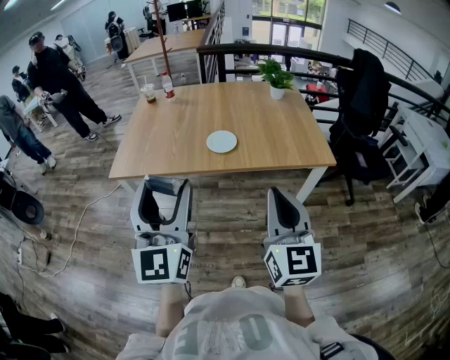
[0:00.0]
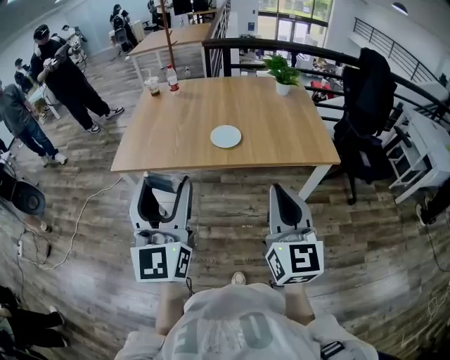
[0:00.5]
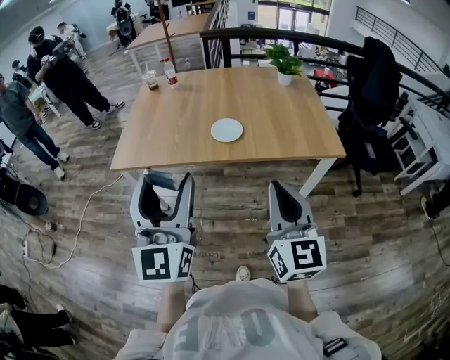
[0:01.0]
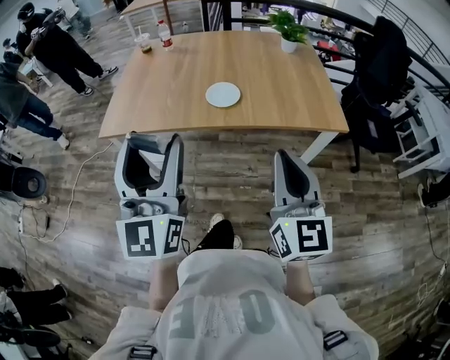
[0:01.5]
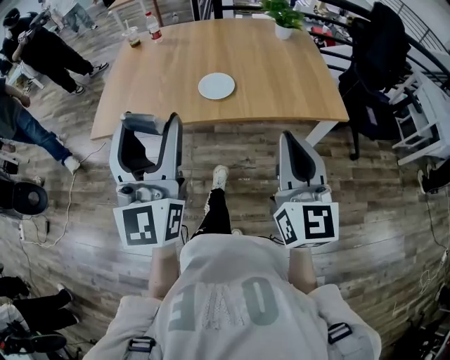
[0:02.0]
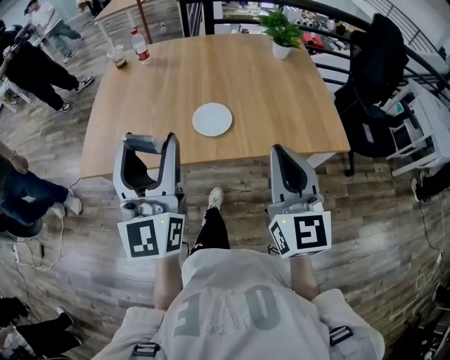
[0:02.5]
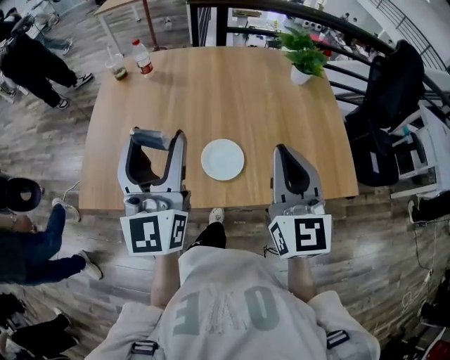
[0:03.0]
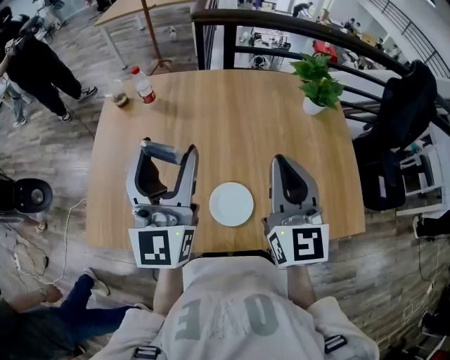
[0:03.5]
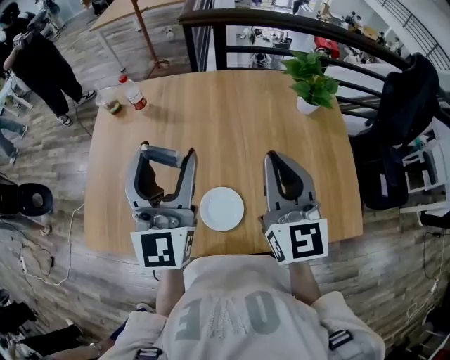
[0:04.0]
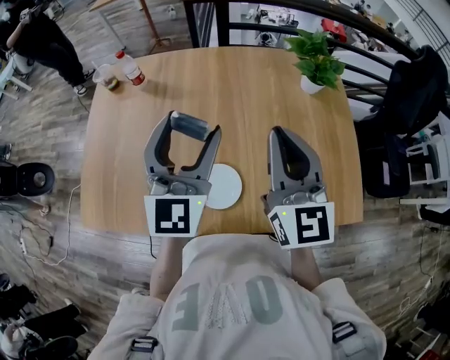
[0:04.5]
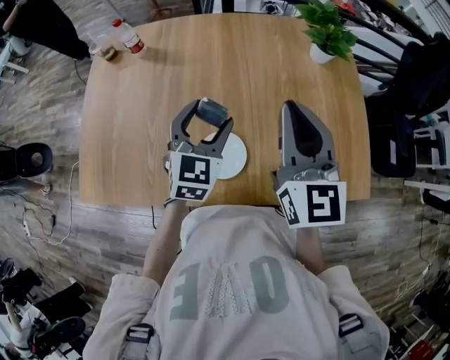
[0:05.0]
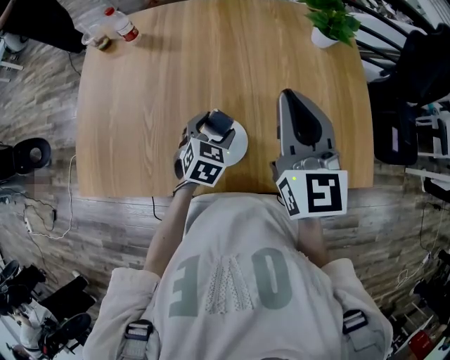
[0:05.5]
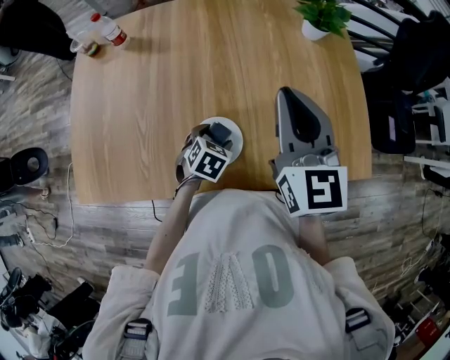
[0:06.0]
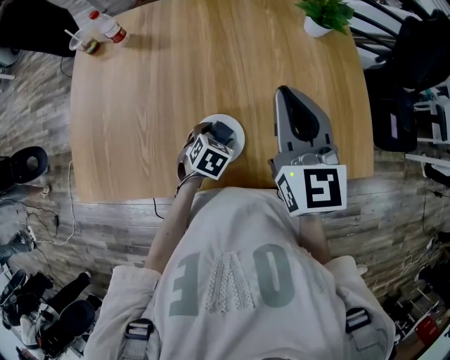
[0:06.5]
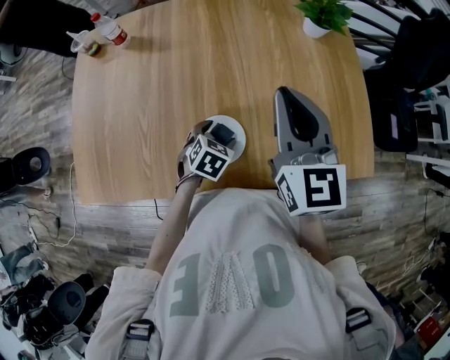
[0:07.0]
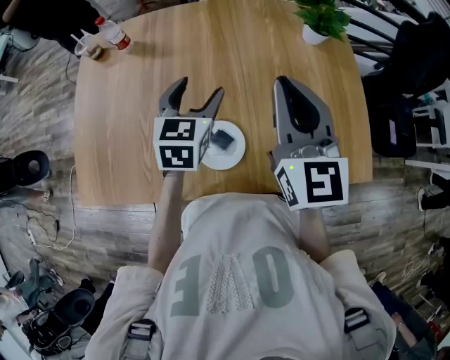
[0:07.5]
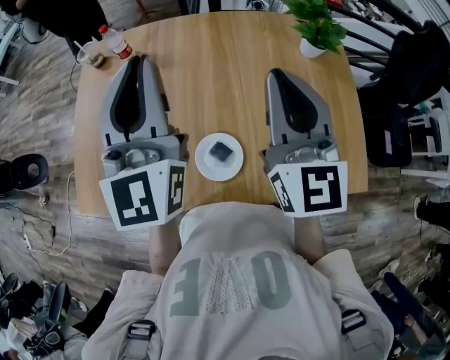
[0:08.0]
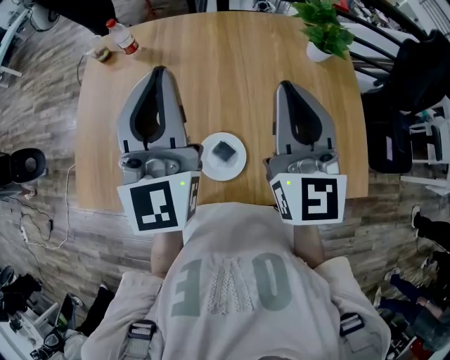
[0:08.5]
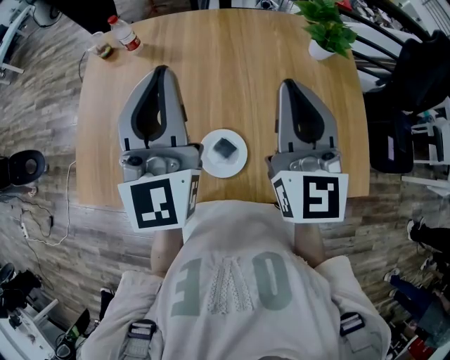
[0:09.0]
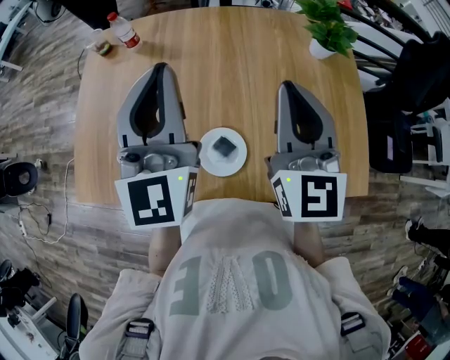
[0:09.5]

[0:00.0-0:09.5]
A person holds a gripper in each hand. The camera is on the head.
0:00.0 to 0:02.0: Both grippers travel together forward, some 5 cm.
0:02.0 to 0:04.0: Both grippers are carried forward, about 50 cm.
0:04.0 to 0:05.5: The left gripper is displaced downward by roughly 30 cm, and tips its fingers downward by some 60 degrees.
0:05.5 to 0:07.5: The left gripper travels upward and forward by some 15 cm, and rotates about 20 degrees.
0:07.5 to 0:09.5: The left gripper is displaced upward by approximately 20 cm, points its fingers about 40 degrees further upward, and closes.

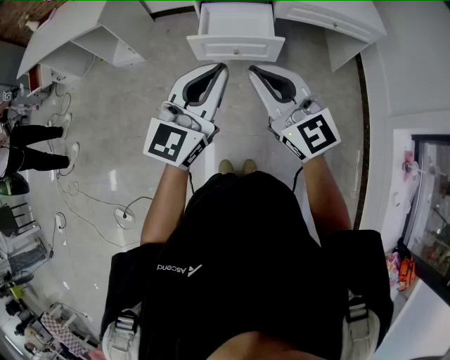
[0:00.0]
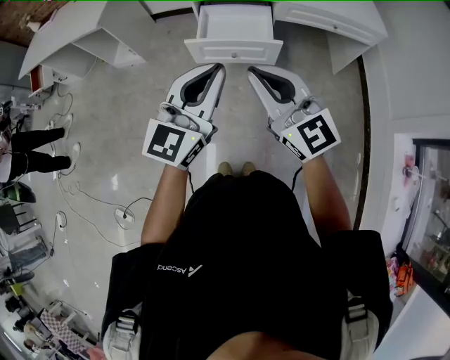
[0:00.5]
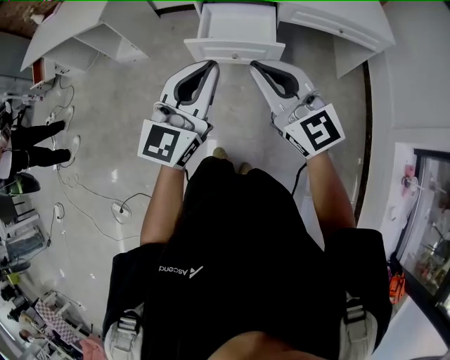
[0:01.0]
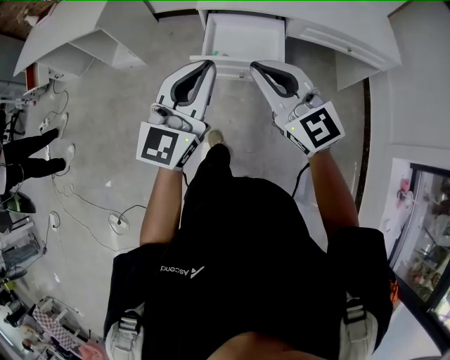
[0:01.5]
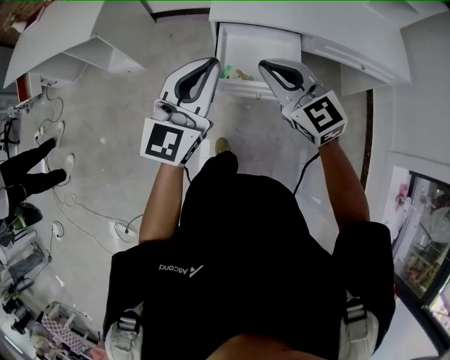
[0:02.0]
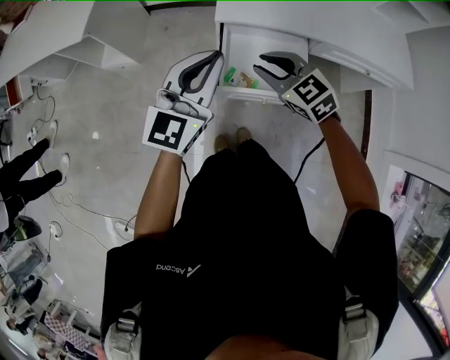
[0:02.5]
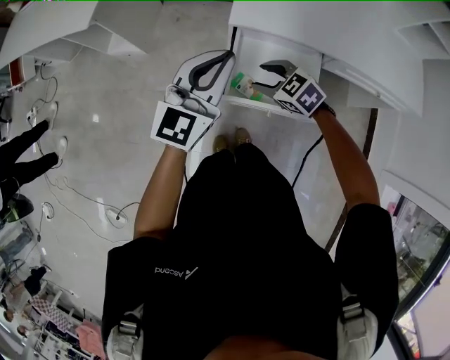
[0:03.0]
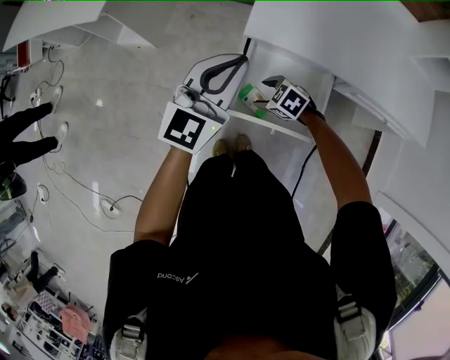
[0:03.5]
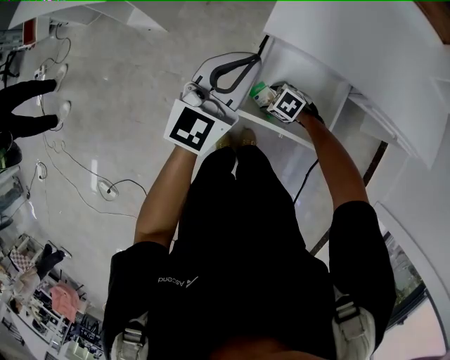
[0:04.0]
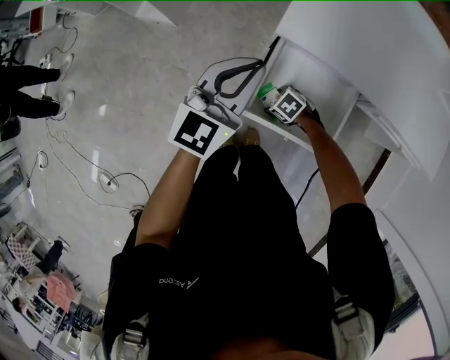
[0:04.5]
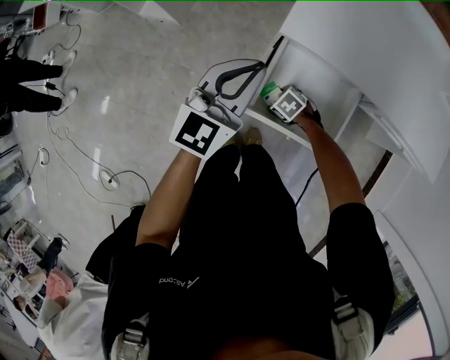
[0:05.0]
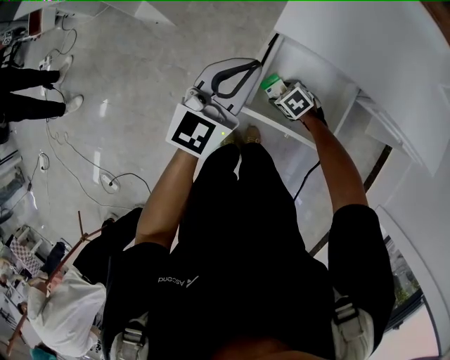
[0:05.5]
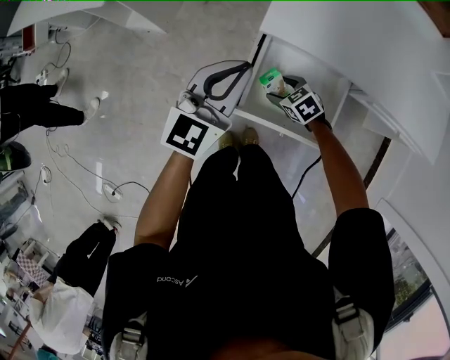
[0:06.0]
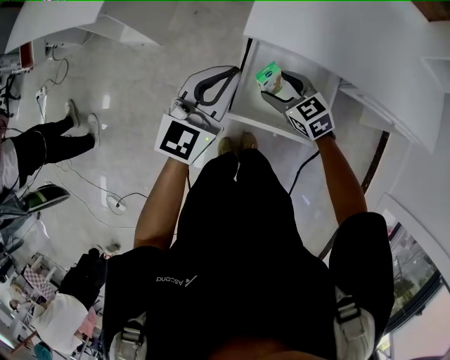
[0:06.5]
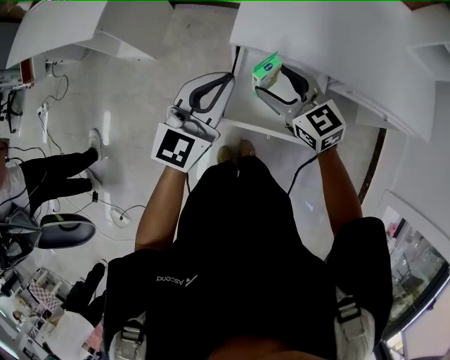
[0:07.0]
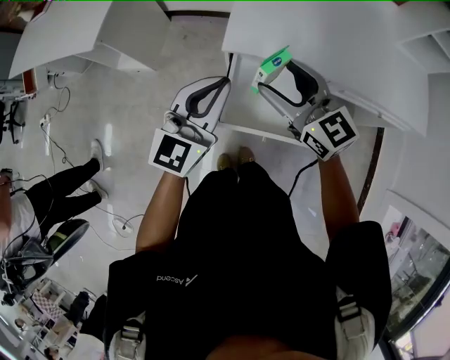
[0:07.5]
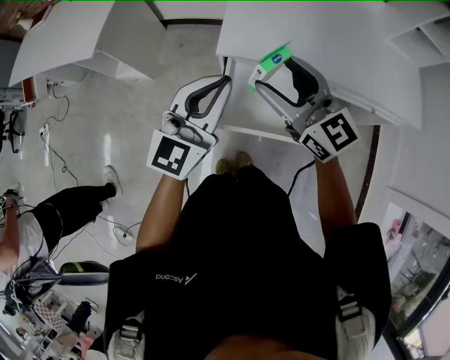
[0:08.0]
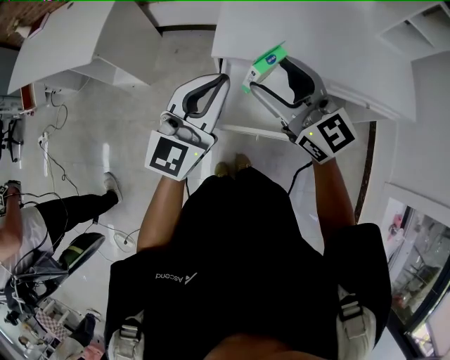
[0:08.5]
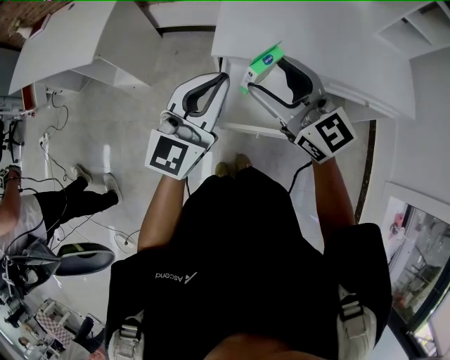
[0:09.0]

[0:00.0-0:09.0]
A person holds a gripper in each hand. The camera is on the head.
0:00.0 to 0:02.0: The grippers both shift forward by some 30 cm.
0:02.0 to 0:04.5: The left gripper shifts by some 25 cm. Meanwhile the right gripper moves downward, about 40 cm, angles its fingers downward, by roughly 60 degrees, and opens.
0:04.5 to 0:07.0: The right gripper heads upward, covering roughly 35 cm, and tilts its fingers about 50 degrees upward, while the left gripper ends up some 5 cm from where it was.
0:07.0 to 0:09.0: The left gripper moves upward, some 10 cm. Meanwhile the right gripper is displaced upward by roughly 15 cm, and changes its angle by some 20 degrees.

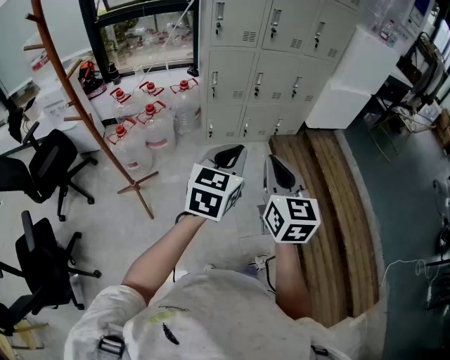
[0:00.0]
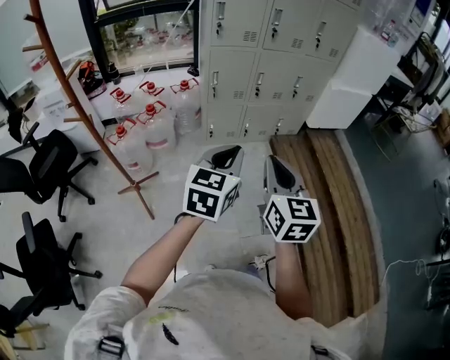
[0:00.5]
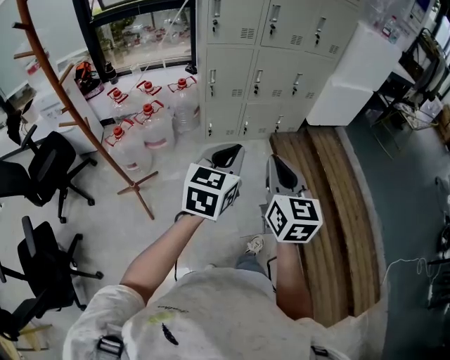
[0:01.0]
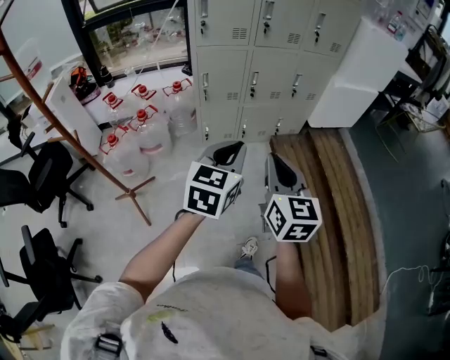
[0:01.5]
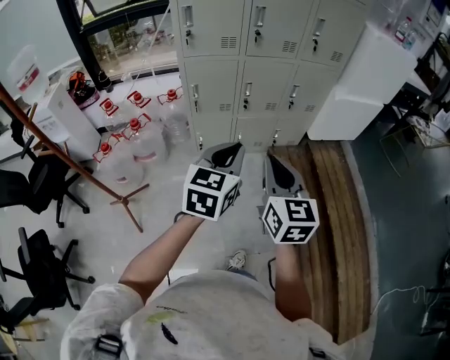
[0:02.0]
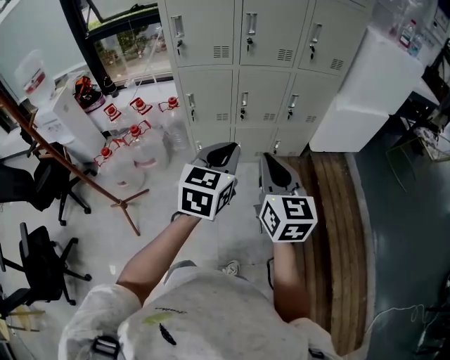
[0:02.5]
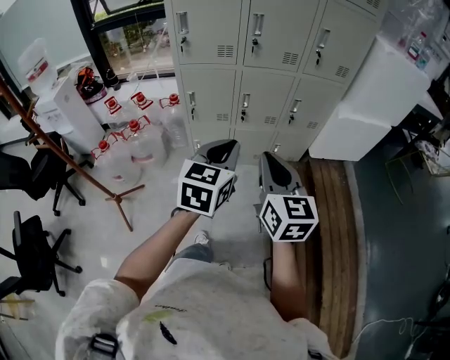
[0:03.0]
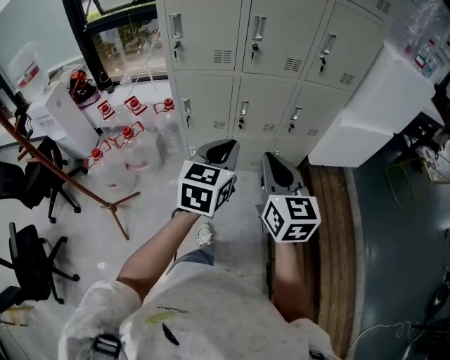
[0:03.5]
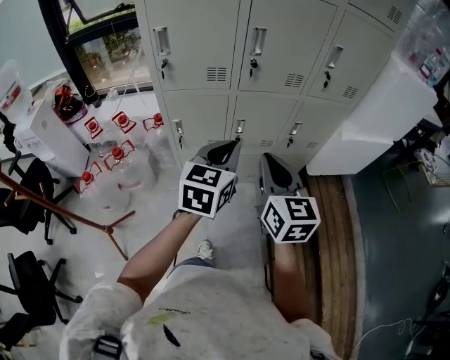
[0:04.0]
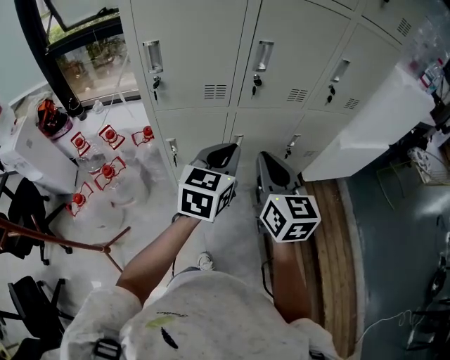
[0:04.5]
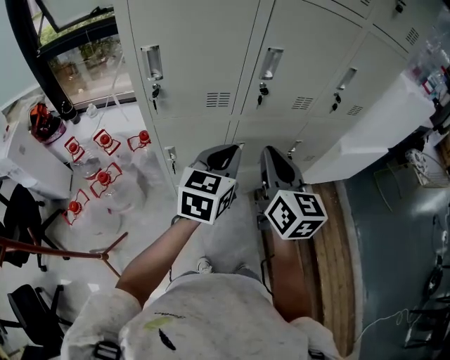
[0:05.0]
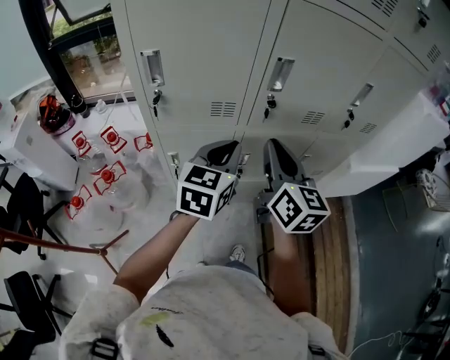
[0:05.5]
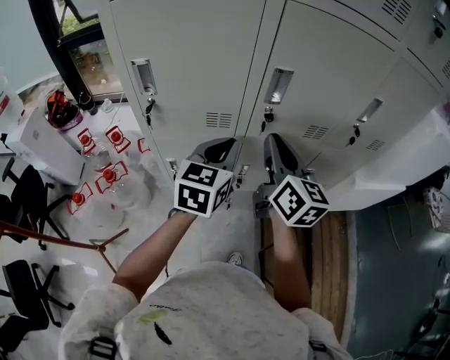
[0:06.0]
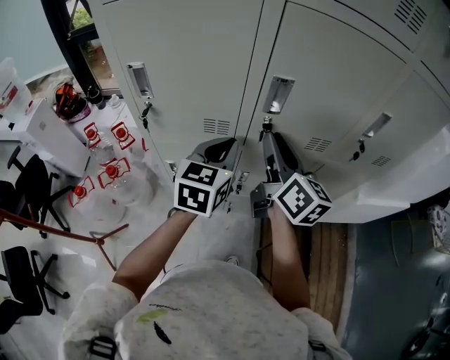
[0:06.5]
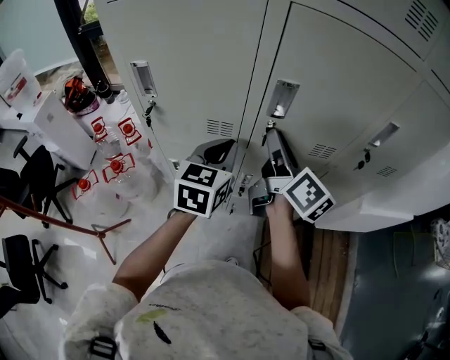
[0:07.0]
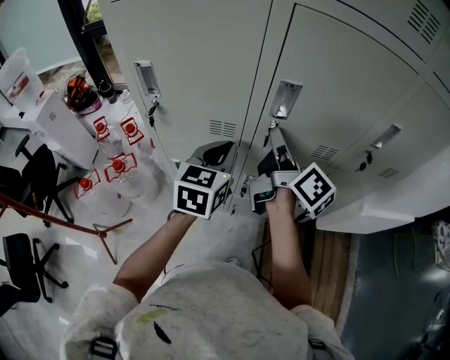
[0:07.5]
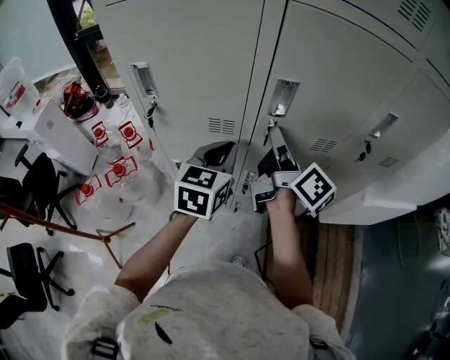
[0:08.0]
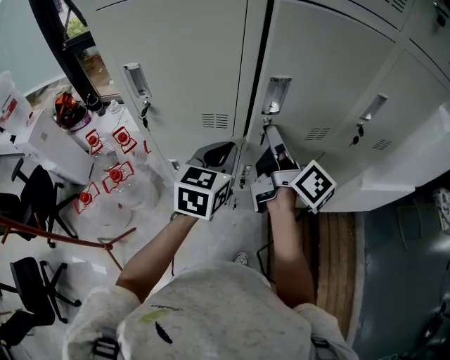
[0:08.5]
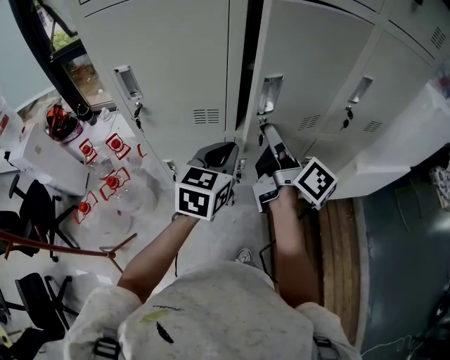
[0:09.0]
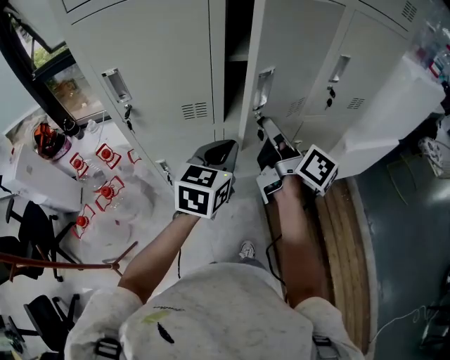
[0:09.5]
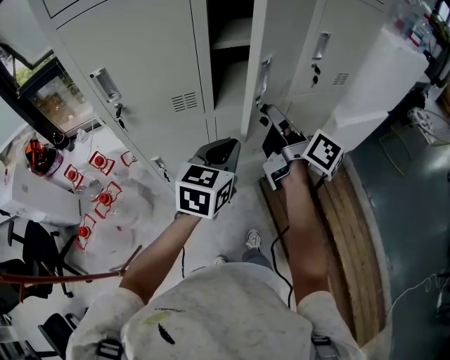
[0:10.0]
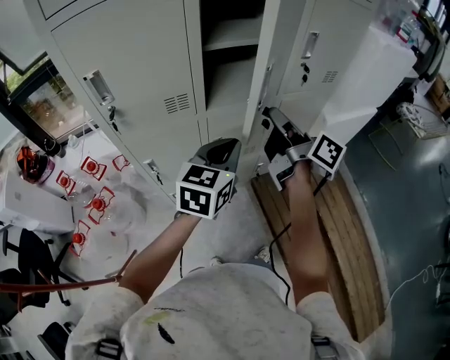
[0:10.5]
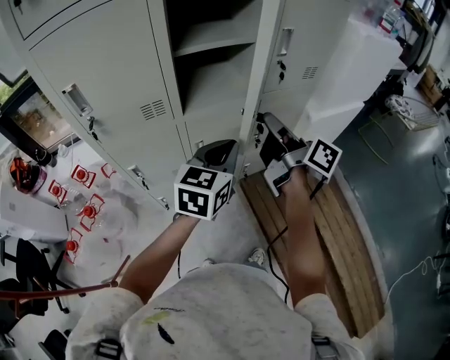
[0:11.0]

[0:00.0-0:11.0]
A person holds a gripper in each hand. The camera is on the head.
0:00.0 to 0:02.0: The grippers both shift forward and to the right by some 25 cm.
0:02.0 to 0:03.5: The grippers both shift forward by approximately 15 cm.
0:03.5 to 0:05.5: The two grippers go roughly 30 cm forward.
0:05.5 to 0:07.5: The right gripper is displaced forward by approximately 15 cm, and twists roughly 40 degrees clockwise, seen from behind, while the left gripper shifts about 10 cm forward.
0:07.5 to 0:09.0: The two grippers go approximately 5 cm backward.
0:09.0 to 0:11.0: The two grippers go some 15 cm to the right and backward. The left gripper changes its angle by some 20 degrees.
